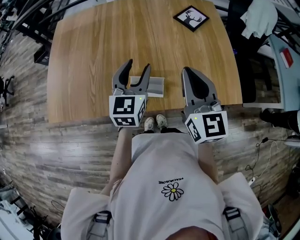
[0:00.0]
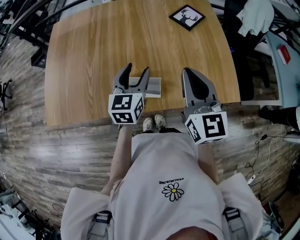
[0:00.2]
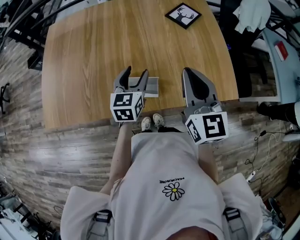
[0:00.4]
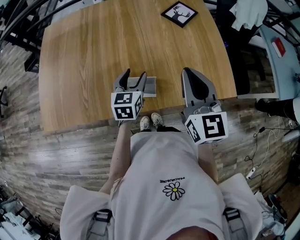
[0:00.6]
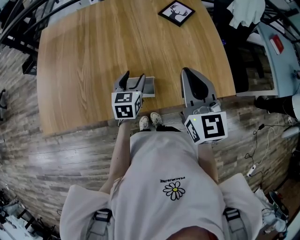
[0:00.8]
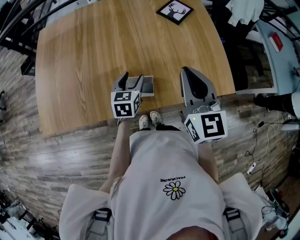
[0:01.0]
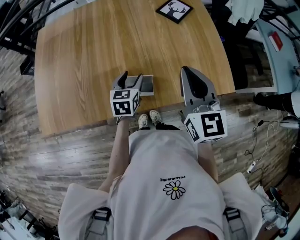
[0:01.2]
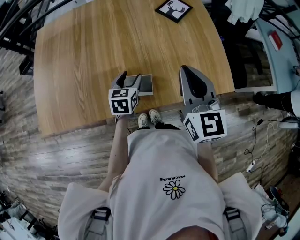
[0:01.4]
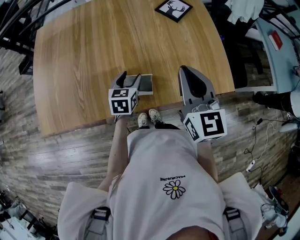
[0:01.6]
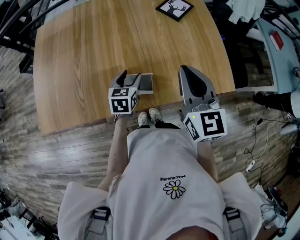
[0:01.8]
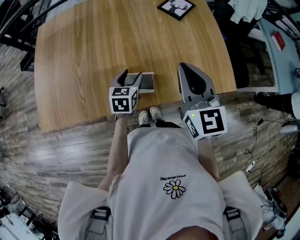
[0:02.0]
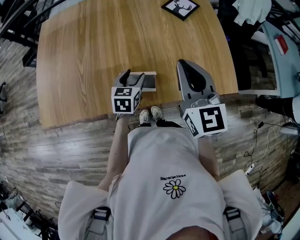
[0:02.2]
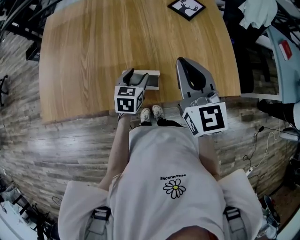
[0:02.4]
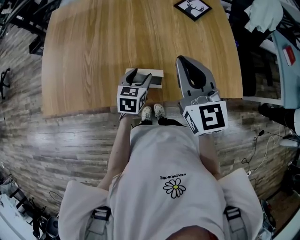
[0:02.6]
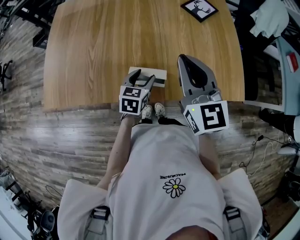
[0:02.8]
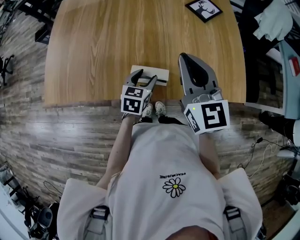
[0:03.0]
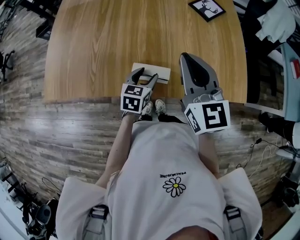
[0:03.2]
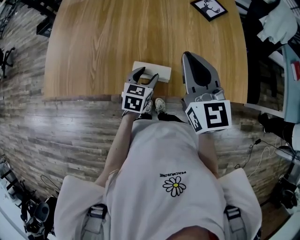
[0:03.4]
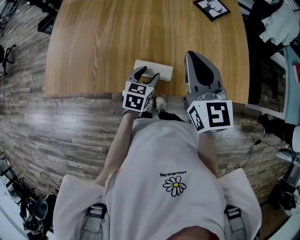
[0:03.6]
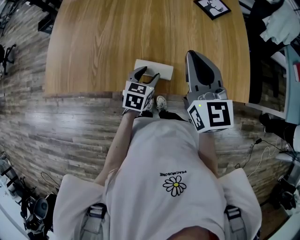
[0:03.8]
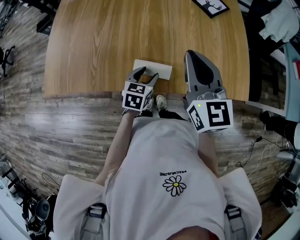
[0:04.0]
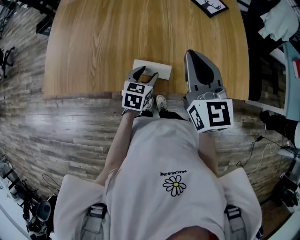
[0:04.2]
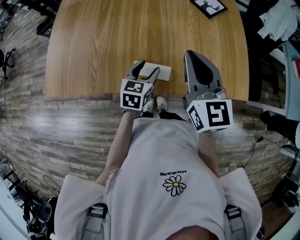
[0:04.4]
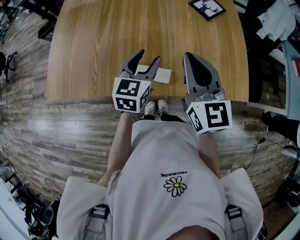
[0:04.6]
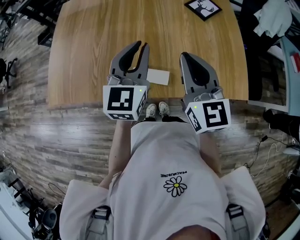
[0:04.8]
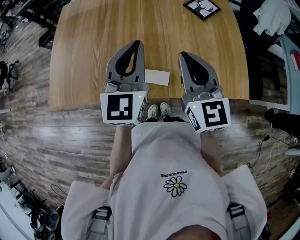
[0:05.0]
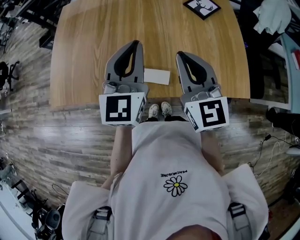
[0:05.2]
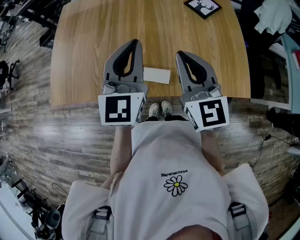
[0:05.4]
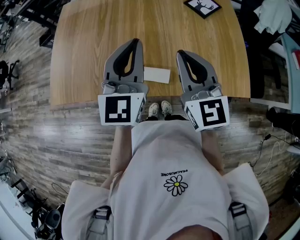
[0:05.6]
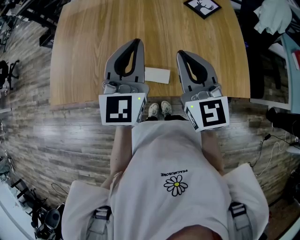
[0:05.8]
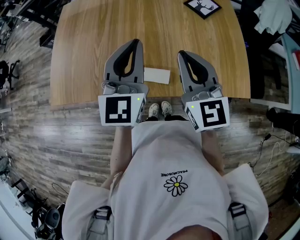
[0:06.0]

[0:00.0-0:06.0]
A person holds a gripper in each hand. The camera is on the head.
0:00.0 to 0:01.6: The left gripper moves downward, about 15 cm, and changes its angle by about 30 degrees.
0:01.6 to 0:03.0: The right gripper shifts approximately 5 cm to the left, while the left gripper goes roughly 5 cm backward.
0:03.0 to 0:04.4: The grippers move only a little.
0:04.4 to 0:06.0: The left gripper moves upward, approximately 25 cm, points its fingers roughly 30 degrees further upward, and closes its fingers.

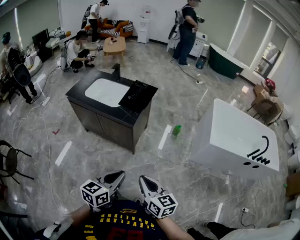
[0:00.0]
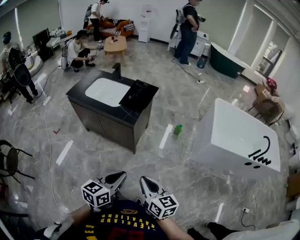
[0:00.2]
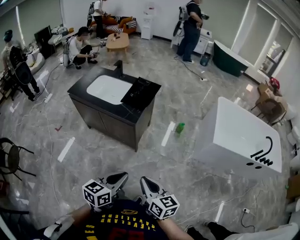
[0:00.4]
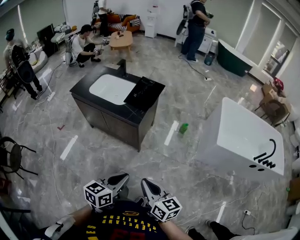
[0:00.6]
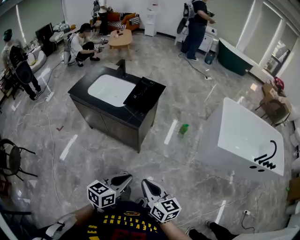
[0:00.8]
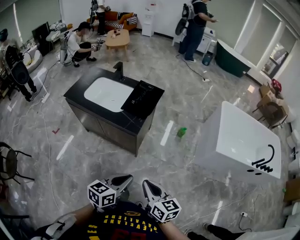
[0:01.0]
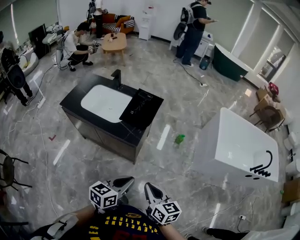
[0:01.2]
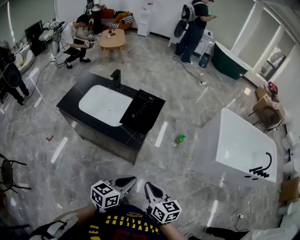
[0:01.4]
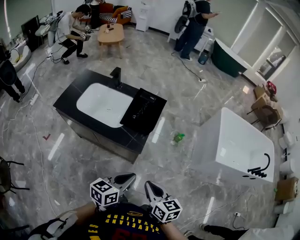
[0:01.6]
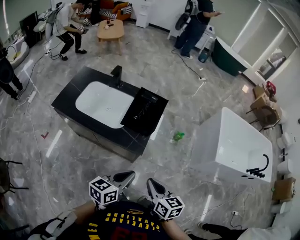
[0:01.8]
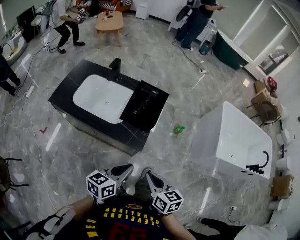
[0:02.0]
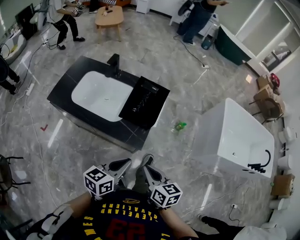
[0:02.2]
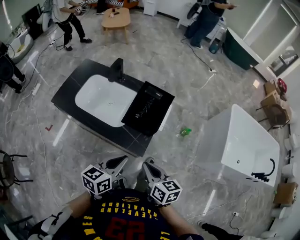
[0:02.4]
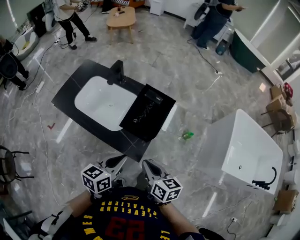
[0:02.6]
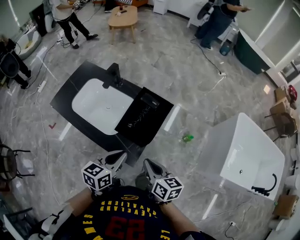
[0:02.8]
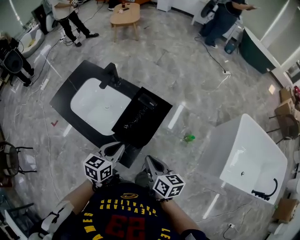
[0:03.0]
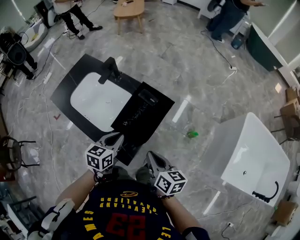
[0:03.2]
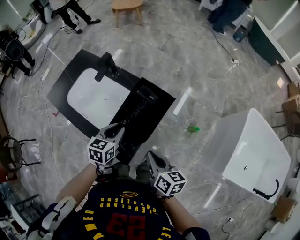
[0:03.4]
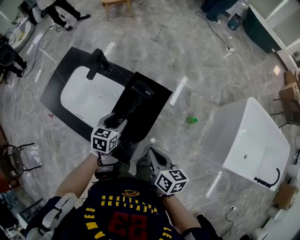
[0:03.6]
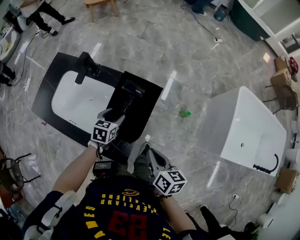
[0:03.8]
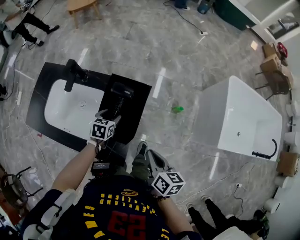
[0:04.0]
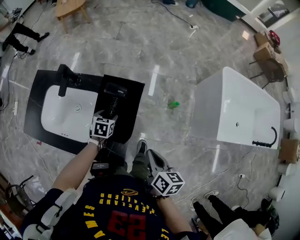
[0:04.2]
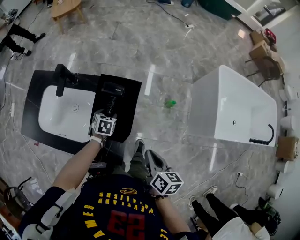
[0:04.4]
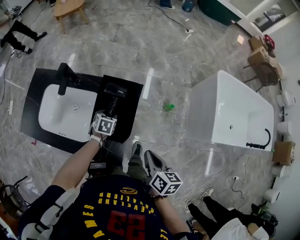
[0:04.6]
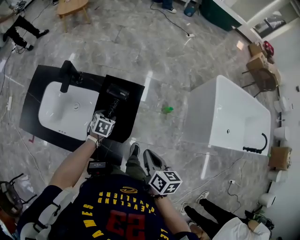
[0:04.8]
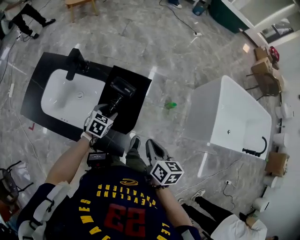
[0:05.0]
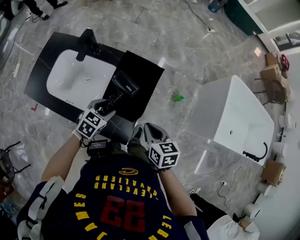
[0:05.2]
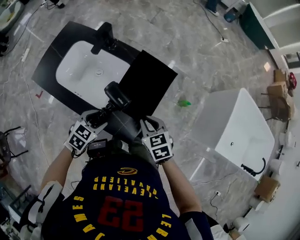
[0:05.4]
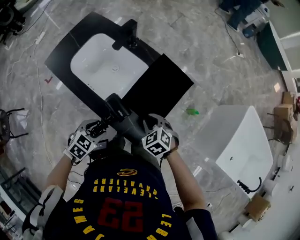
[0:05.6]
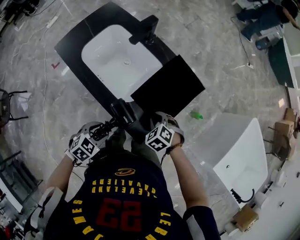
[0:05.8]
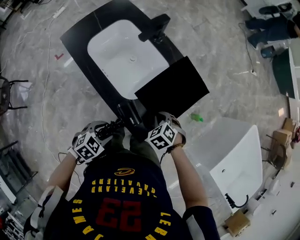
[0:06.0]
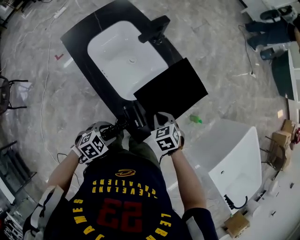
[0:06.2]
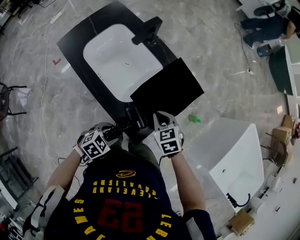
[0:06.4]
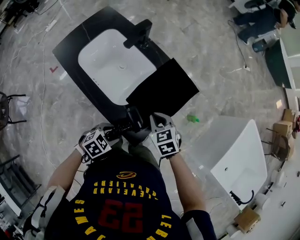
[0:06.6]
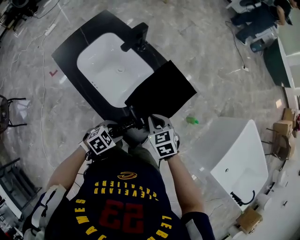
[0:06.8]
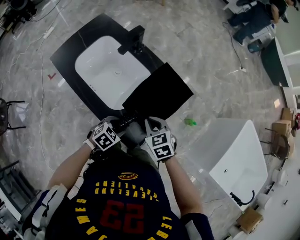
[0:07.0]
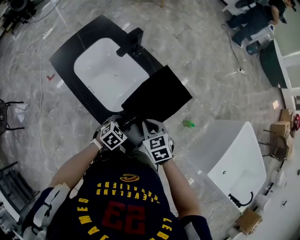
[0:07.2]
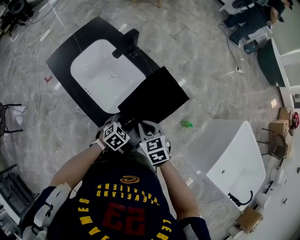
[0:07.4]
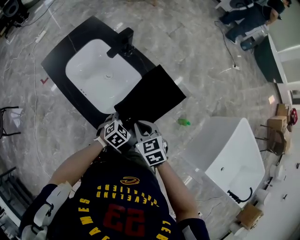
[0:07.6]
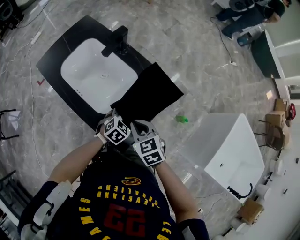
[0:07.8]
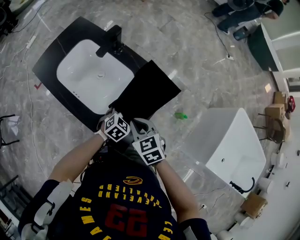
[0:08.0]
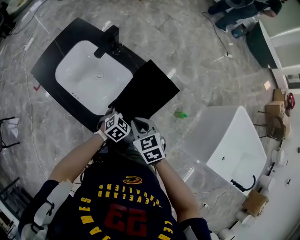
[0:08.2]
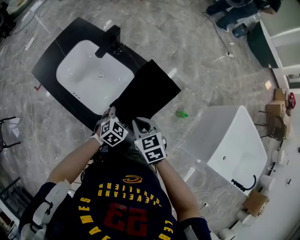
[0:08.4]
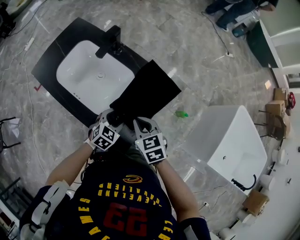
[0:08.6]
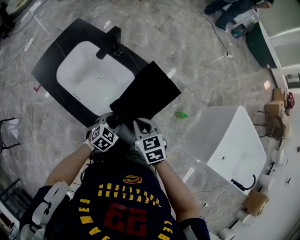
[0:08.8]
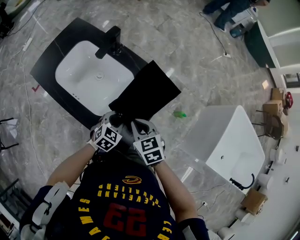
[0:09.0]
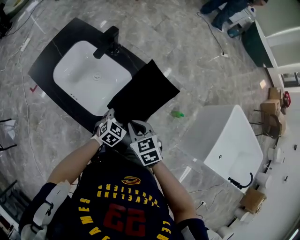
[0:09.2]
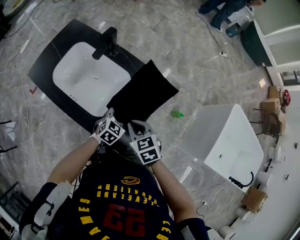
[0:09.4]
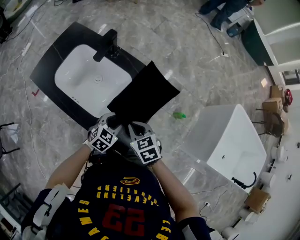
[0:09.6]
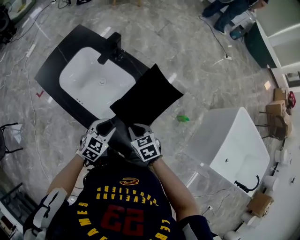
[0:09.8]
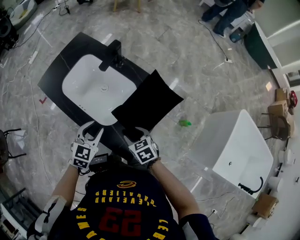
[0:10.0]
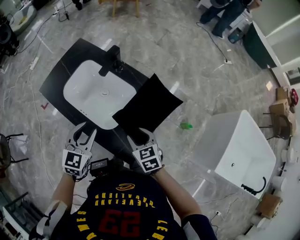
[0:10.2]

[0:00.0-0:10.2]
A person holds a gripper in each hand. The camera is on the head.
0:00.0 to 0:01.4: The two grippers go approximately 20 cm forward.
0:01.4 to 0:03.0: Both grippers move forward, about 35 cm. The left gripper changes its angle by about 20 degrees.
0:03.0 to 0:04.4: The left gripper travels downward and forward by approximately 30 cm, tilts its fingers about 30 degrees downward, and opens its fingers; the right gripper travels to the right by some 5 cm, and turns by some 30 degrees.
0:04.4 to 0:05.8: The right gripper travels to the left and downward by about 20 cm, and twists approximately 100 degrees counterclockwise, seen from behind. Meanwhile the left gripper goes some 35 cm backward and to the left.
0:05.8 to 0:07.2: The right gripper heads upward, covering roughly 10 cm, and swivels some 30 degrees; the left gripper is displaced forward and to the right by some 15 cm.
0:08.8 to 0:10.2: The left gripper travels upward and to the left by about 25 cm, and rotates approximately 30 degrees. Meanwhile the right gripper opens.

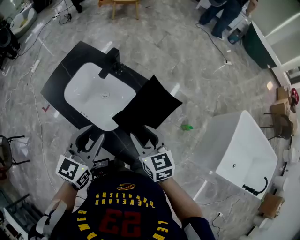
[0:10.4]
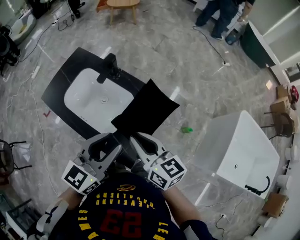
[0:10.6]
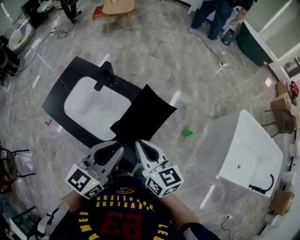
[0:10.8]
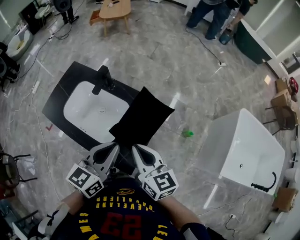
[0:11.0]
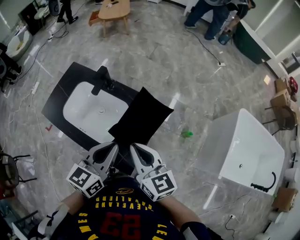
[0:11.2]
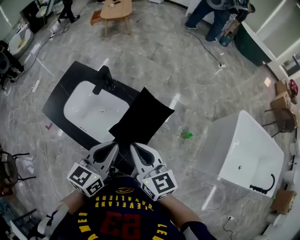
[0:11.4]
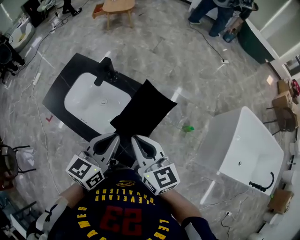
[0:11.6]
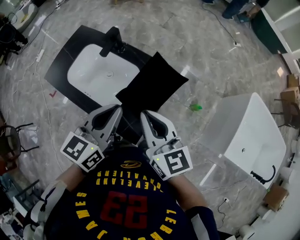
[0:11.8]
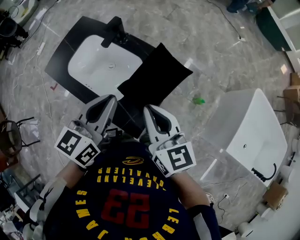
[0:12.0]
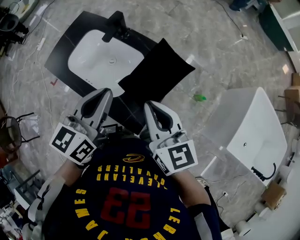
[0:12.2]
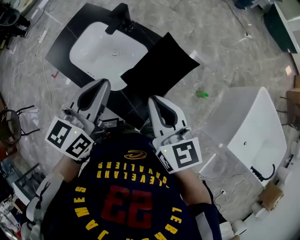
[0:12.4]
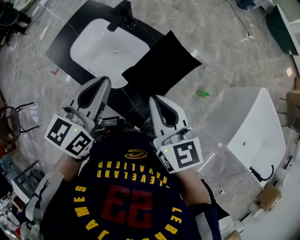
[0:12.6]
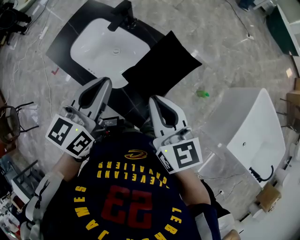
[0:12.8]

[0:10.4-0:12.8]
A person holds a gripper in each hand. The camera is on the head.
0:10.4 to 0:11.6: The right gripper is displaced upward by about 10 cm, and closes its fingers, while the left gripper travels to the right by about 10 cm, and closes its fingers.
0:11.6 to 0:12.8: The left gripper moves to the left, roughly 5 cm.

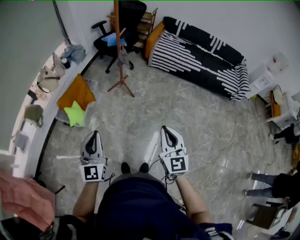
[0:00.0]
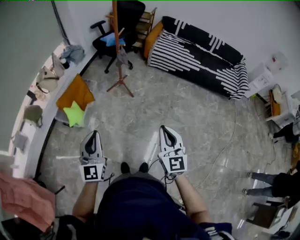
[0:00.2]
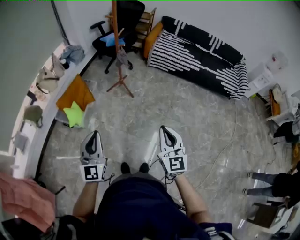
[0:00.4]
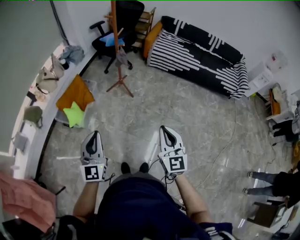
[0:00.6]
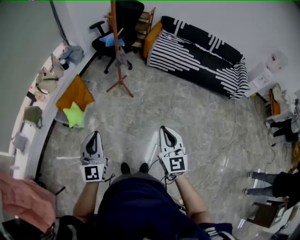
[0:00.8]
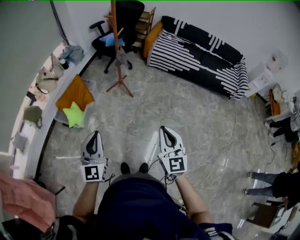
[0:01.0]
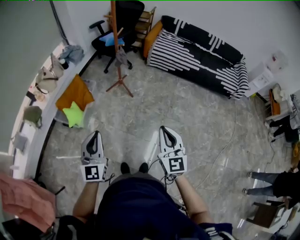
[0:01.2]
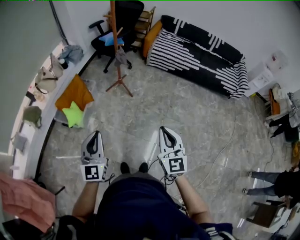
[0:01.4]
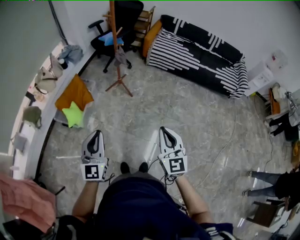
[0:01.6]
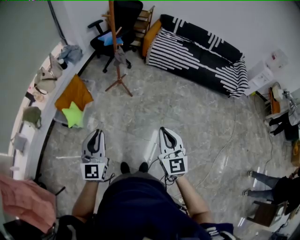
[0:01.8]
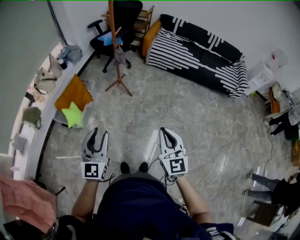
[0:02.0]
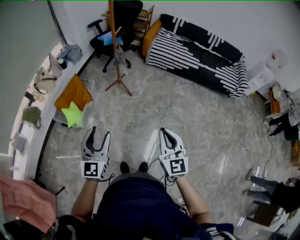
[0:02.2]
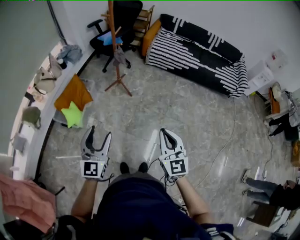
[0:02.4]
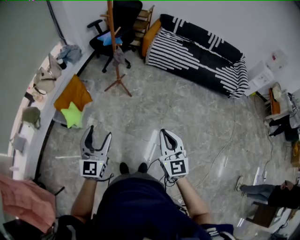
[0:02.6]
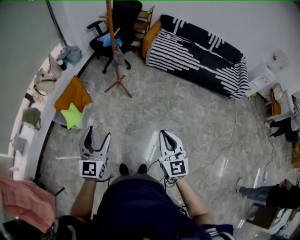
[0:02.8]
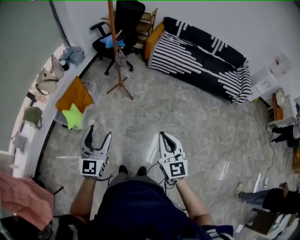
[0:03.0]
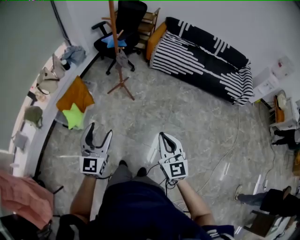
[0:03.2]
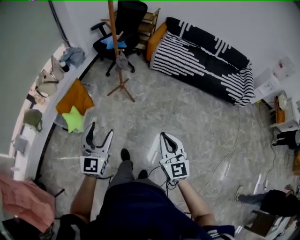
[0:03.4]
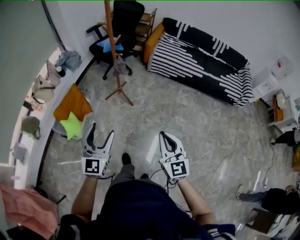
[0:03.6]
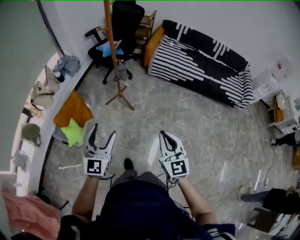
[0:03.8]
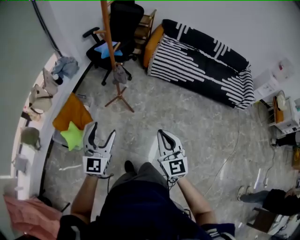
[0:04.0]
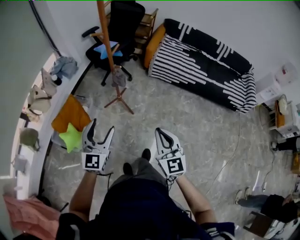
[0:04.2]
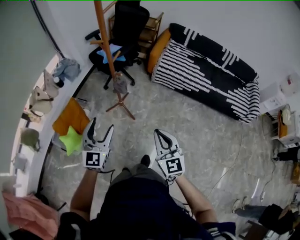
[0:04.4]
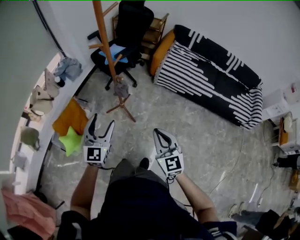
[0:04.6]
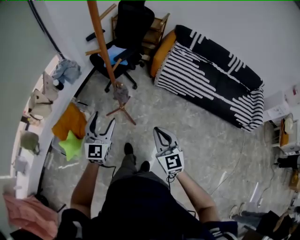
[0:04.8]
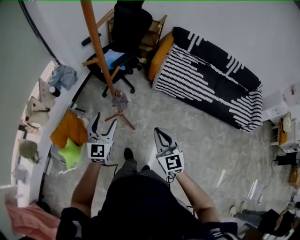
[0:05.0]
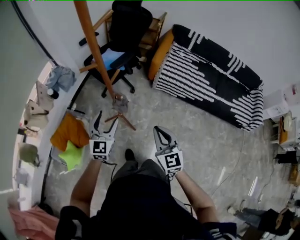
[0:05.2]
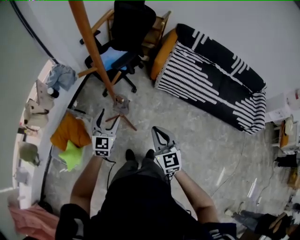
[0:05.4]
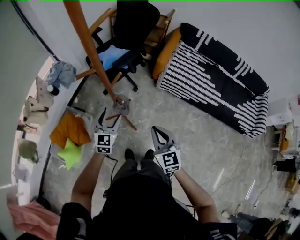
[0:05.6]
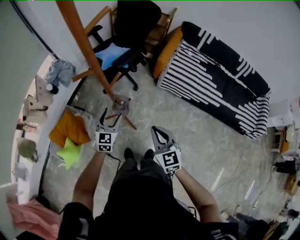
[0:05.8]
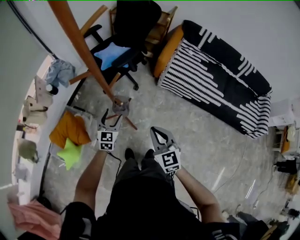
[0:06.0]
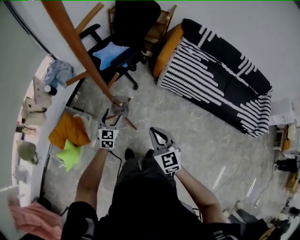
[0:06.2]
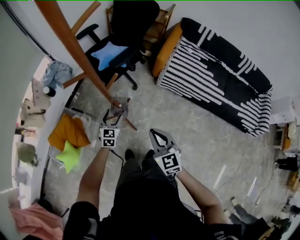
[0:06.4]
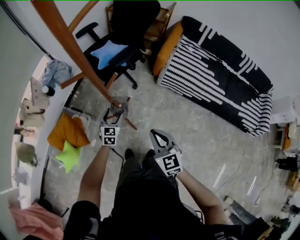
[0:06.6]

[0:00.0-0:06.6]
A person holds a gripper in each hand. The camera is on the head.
0:00.0 to 0:01.6: The grippers make only small movements.
0:01.6 to 0:03.2: The right gripper moves approximately 5 cm, while the left gripper shifts about 10 cm forward and to the right, and opens its fingers.
0:03.2 to 0:05.0: The two grippers travel together, forward, about 60 cm.
0:05.0 to 0:06.6: The right gripper travels forward and downward by roughly 20 cm. Meanwhile the left gripper shifts roughly 35 cm downward and forward, and swivels about 20 degrees.
